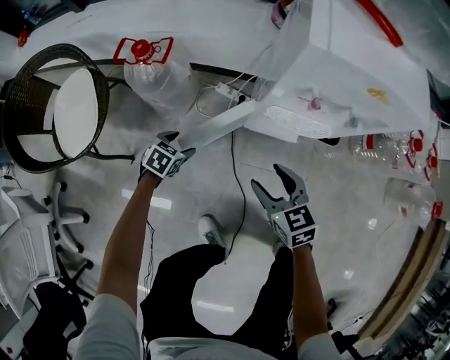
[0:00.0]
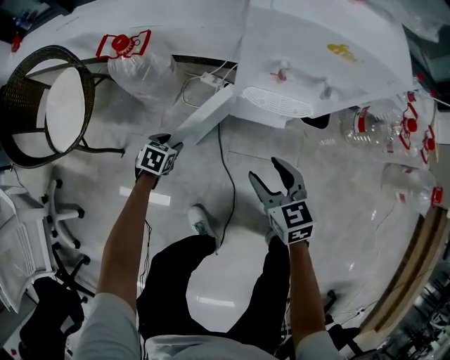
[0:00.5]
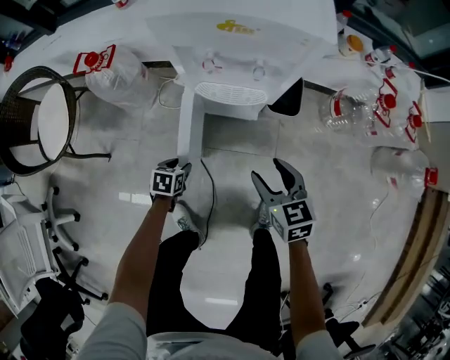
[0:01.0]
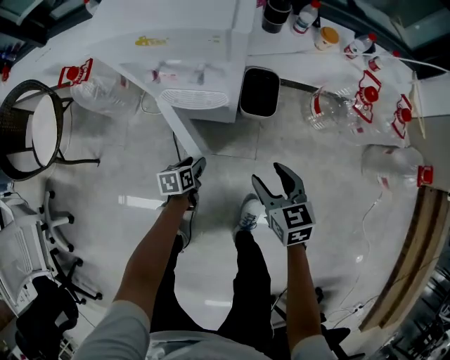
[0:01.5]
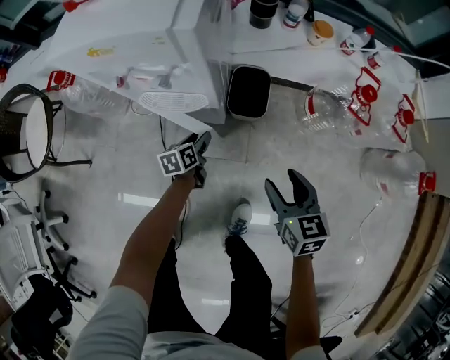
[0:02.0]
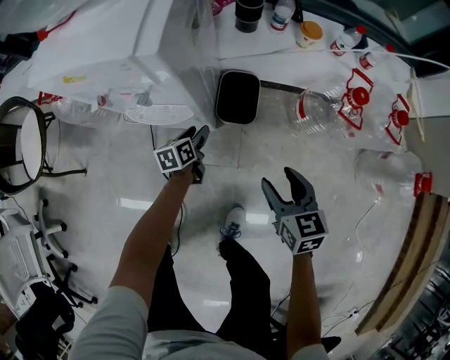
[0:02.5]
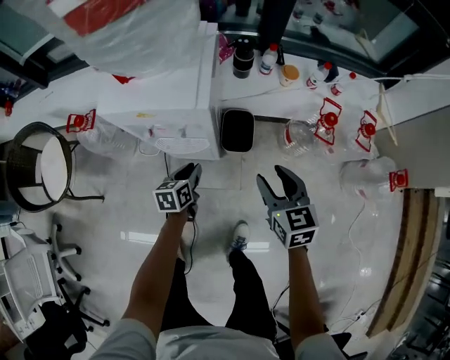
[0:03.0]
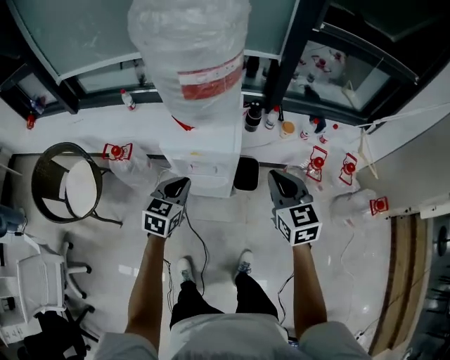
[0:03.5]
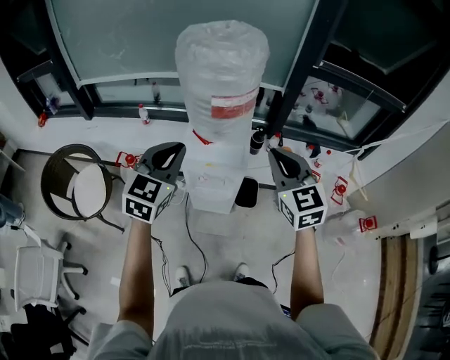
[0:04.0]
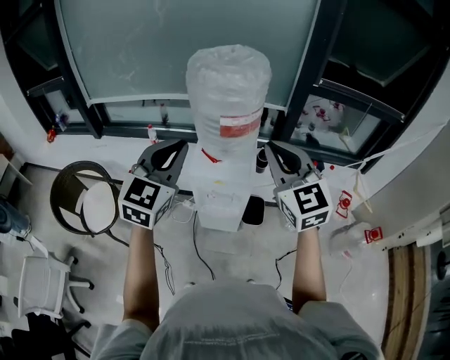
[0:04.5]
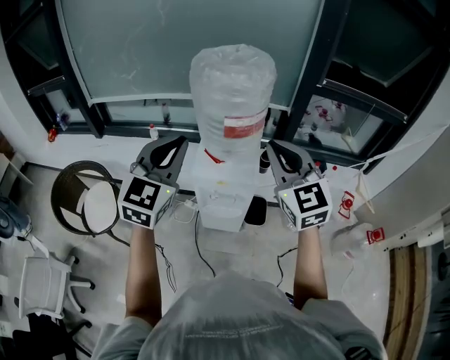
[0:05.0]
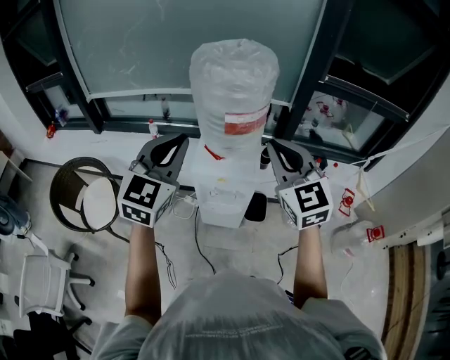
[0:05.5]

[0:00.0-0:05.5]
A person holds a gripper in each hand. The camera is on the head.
0:00.0 to 0:02.0: The pair of grippers is taken to the right, some 50 cm. The left gripper rotates around the line of its fingers by some 40 degrees, counterclockwise from behind, while the right gripper swivels approximately 20 degrees.
0:02.0 to 0:03.5: Both grippers travel together upward, approximately 50 cm. The left gripper rotates around the line of its fingers by some 50 degrees, clockwise from behind, and closes its fingers, while the right gripper changes its angle by roughly 20 degrees, and closes its fingers.
0:03.5 to 0:05.5: The left gripper is displaced upward by approximately 35 cm, and rotates approximately 40 degrees, while the right gripper moves upward and to the left, about 30 cm, and rotates about 30 degrees.

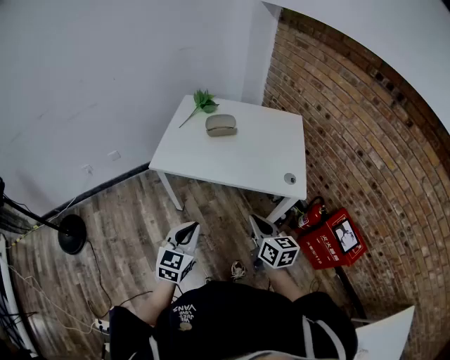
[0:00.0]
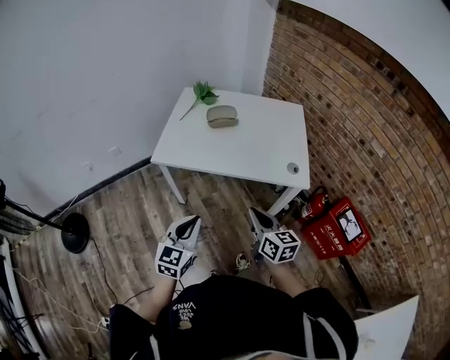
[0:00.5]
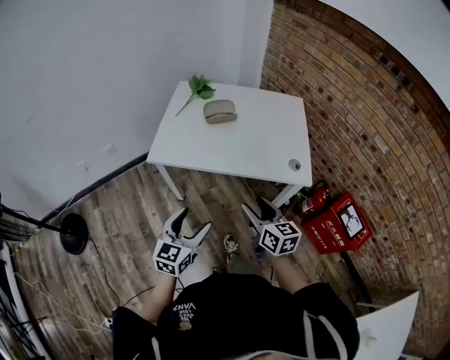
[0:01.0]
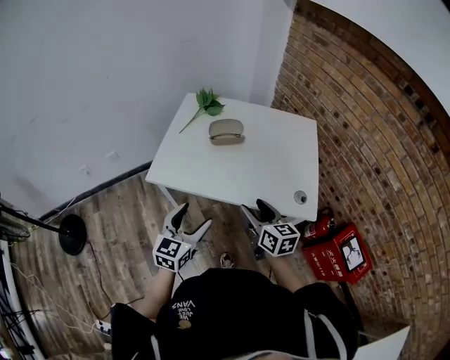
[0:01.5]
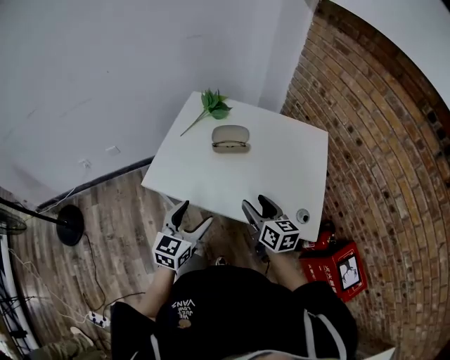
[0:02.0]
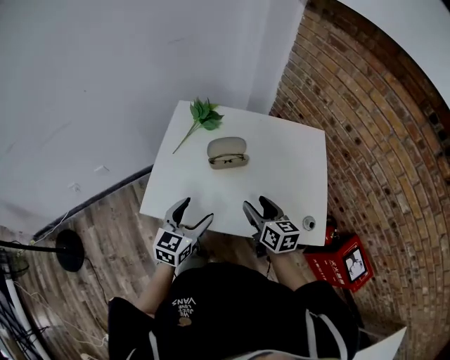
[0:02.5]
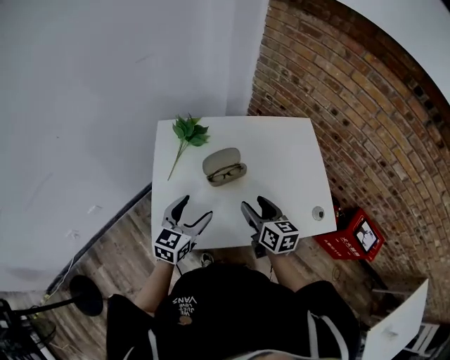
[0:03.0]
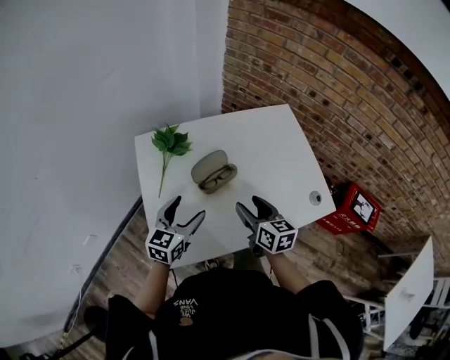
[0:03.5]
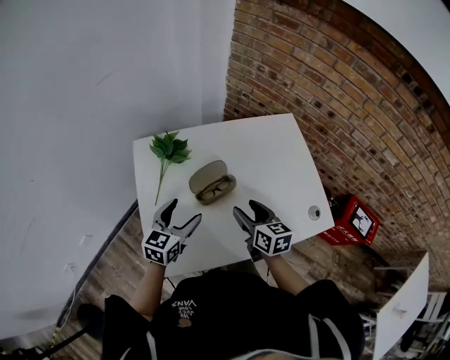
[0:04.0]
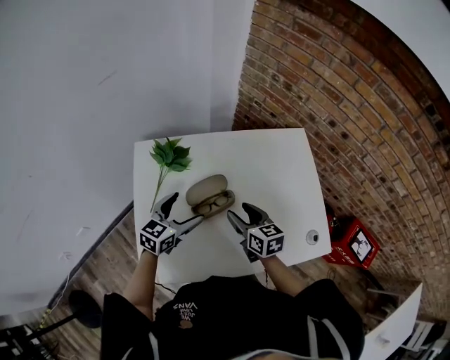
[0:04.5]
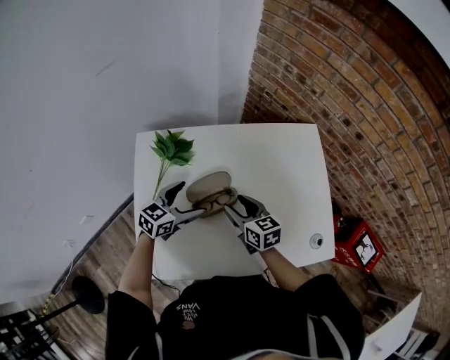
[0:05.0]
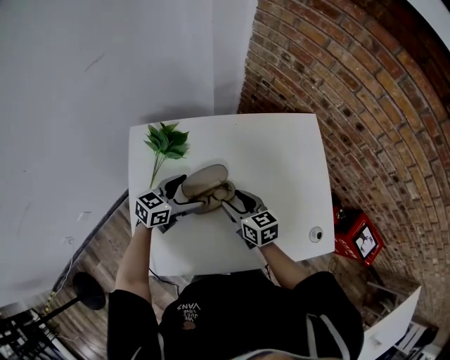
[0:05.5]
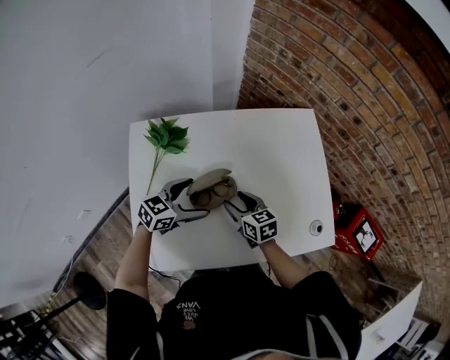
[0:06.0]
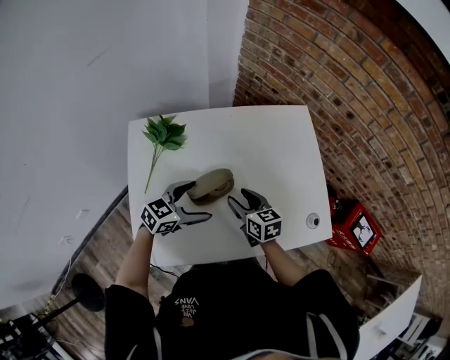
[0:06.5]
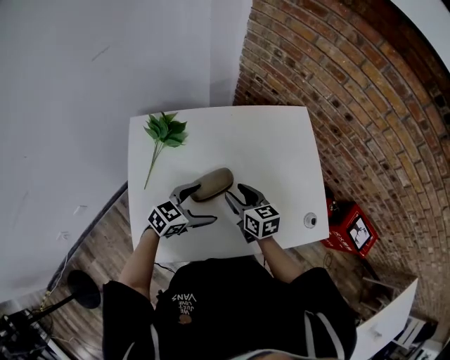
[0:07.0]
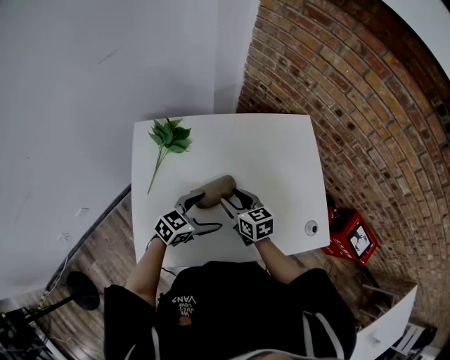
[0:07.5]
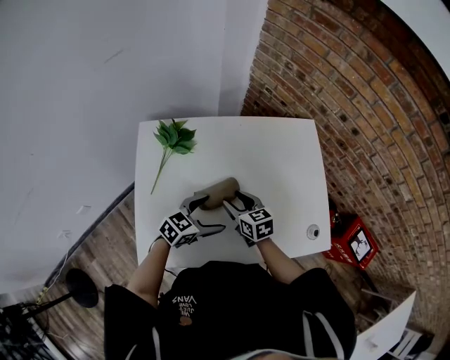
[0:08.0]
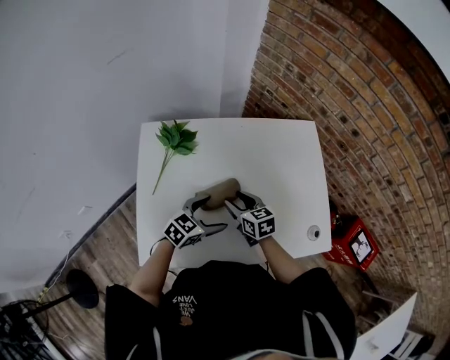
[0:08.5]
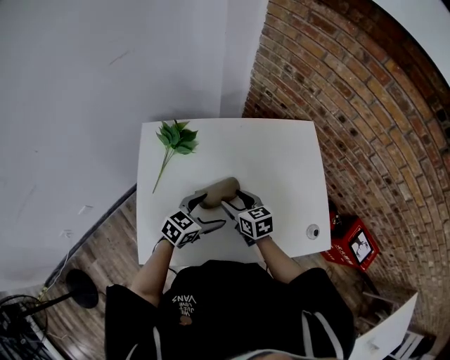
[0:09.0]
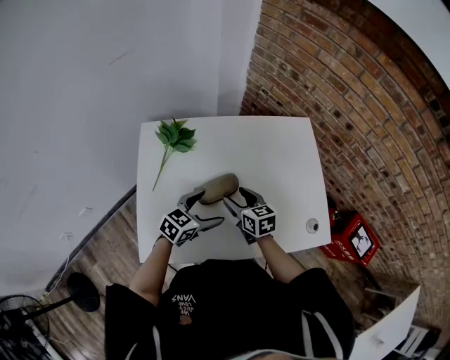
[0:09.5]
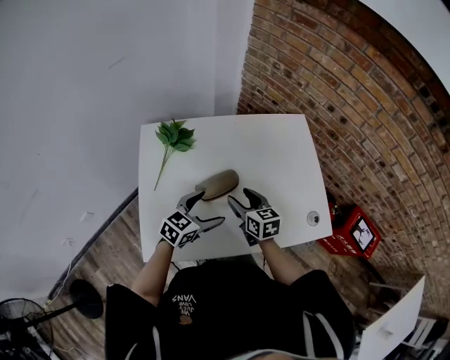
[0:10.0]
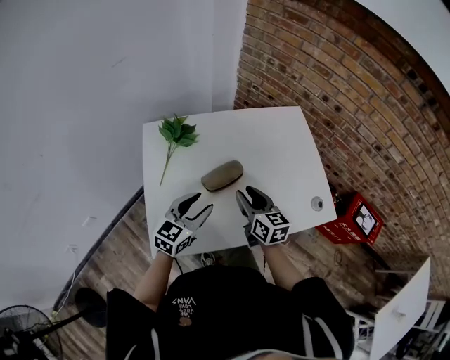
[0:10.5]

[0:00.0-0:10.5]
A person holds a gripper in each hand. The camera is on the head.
0:00.0 to 0:02.0: The two grippers go approximately 25 cm forward. The left gripper opens its fingers. Meanwhile the right gripper opens up.
0:02.0 to 0:04.0: The left gripper ends up approximately 30 cm from where it was, and swivels roughly 30 degrees, while the right gripper ends up roughly 15 cm from where it was, and swivels roughly 30 degrees.
0:04.0 to 0:06.5: The right gripper shifts roughly 10 cm downward and forward. The left gripper heads to the right, covering approximately 10 cm, moves approximately 10 cm forward and comes back, and swivels approximately 30 degrees.
0:06.5 to 0:08.5: The grippers stay close to where they were, moving slightly.
0:08.5 to 0:10.5: The right gripper goes roughly 10 cm upward and backward, and rotates some 20 degrees; the left gripper moves upward, to the left and backward, approximately 10 cm, changes its angle by some 20 degrees, and closes its fingers.

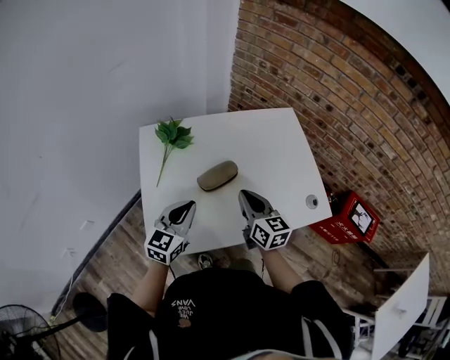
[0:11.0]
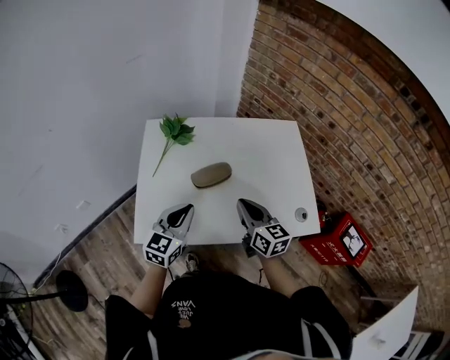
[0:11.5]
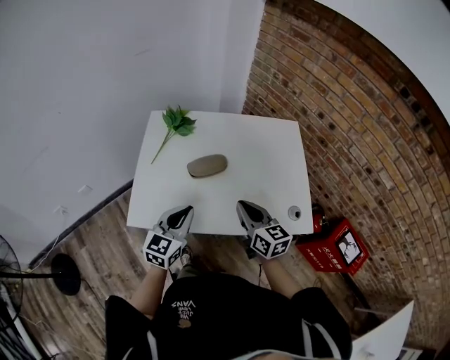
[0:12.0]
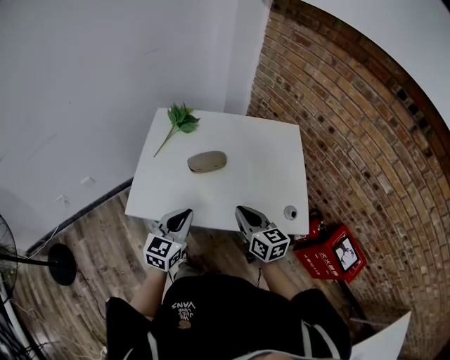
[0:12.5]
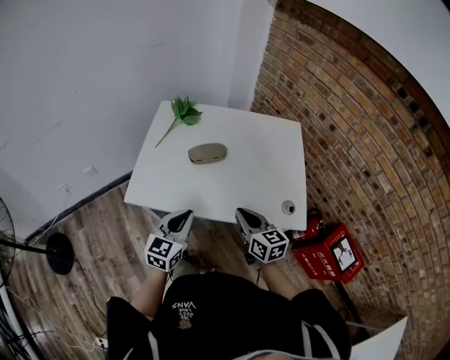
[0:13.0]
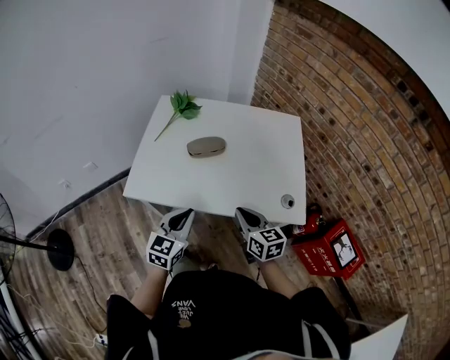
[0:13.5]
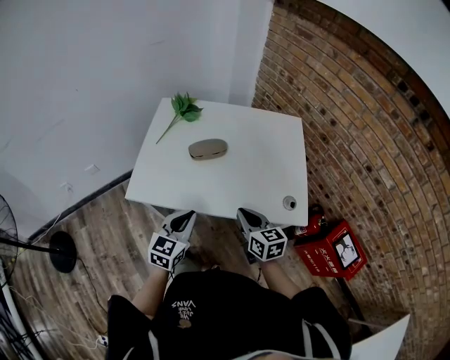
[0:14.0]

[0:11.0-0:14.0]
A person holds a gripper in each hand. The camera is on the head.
0:11.0 to 0:12.5: Both grippers move backward and to the right, roughly 15 cm. The right gripper turns by about 20 degrees.
0:12.5 to 0:14.0: The right gripper shifts by approximately 5 cm. Meanwhile the left gripper shifts approximately 5 cm backward.

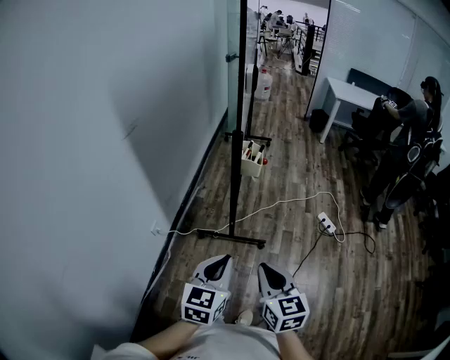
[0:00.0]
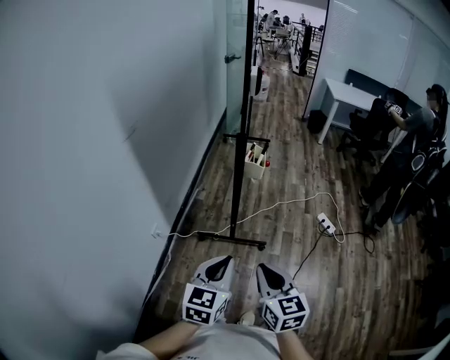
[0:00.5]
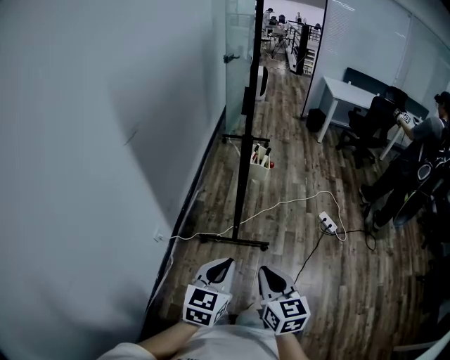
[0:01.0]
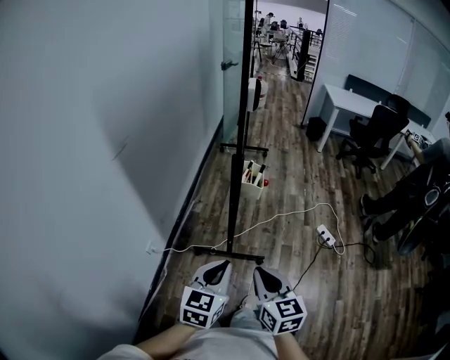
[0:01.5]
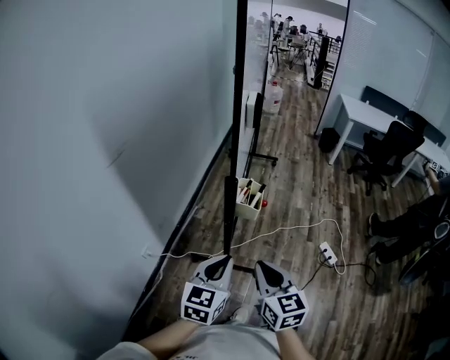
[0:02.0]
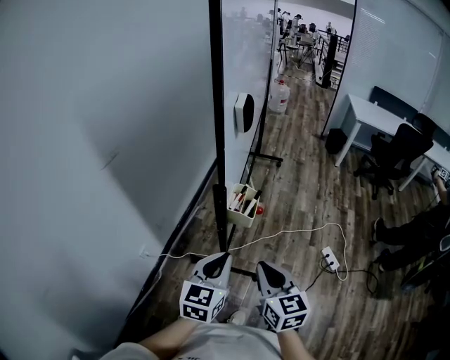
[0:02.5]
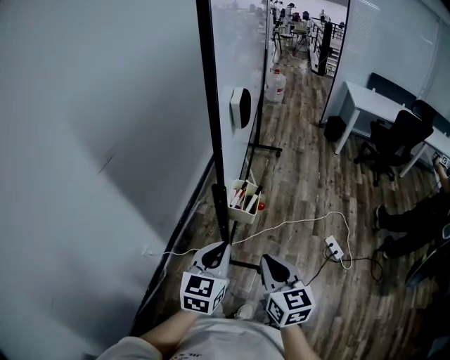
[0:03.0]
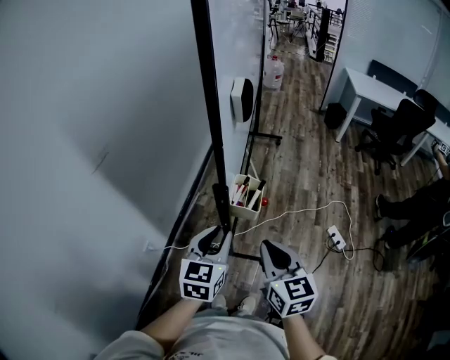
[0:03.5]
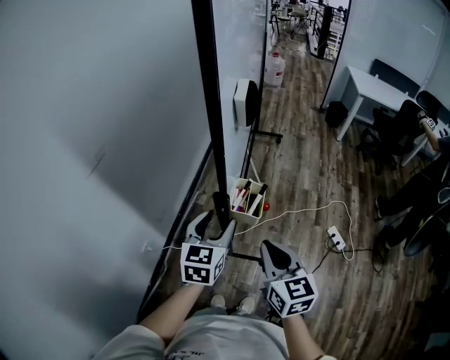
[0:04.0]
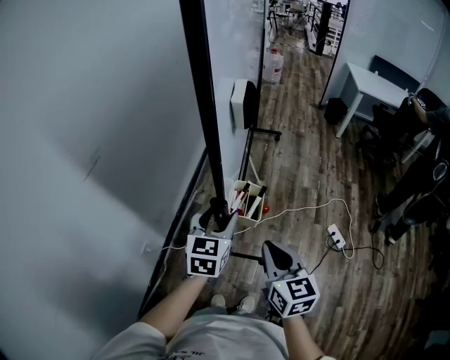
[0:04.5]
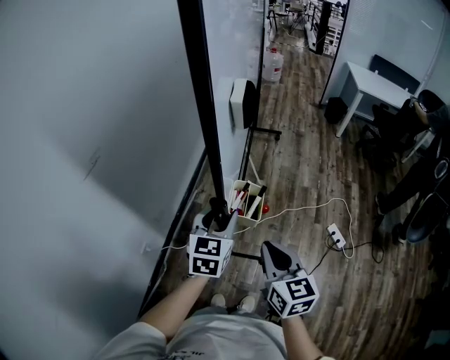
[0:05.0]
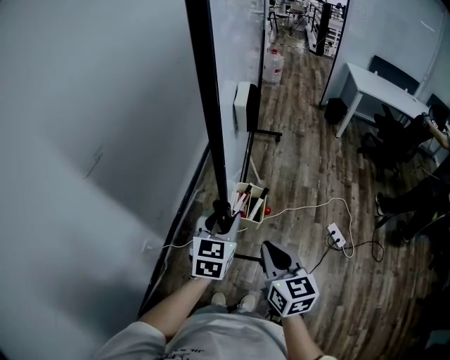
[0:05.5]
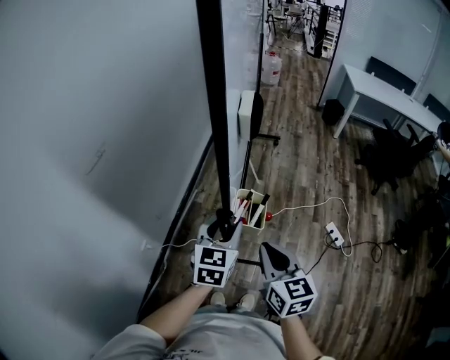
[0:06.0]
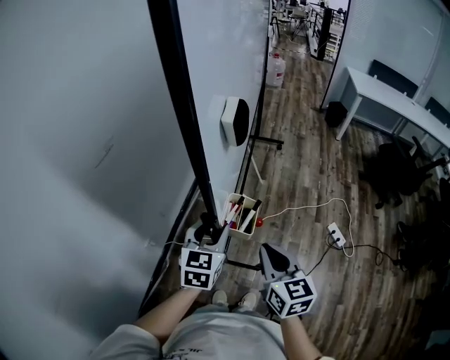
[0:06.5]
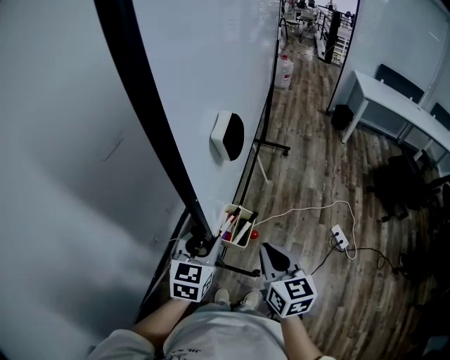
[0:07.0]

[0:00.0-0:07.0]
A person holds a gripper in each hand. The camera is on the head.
0:00.0 to 0:02.0: Both grippers travel together forward, some 20 cm.
0:02.0 to 0:03.5: Both grippers travel together forward, about 10 cm.
0:03.5 to 0:05.0: The left gripper is displaced forward by approximately 10 cm, and opens its fingers.
0:05.0 to 0:07.0: The left gripper travels backward and to the left by roughly 15 cm. Meanwhile the right gripper shifts some 10 cm backward and to the left.
